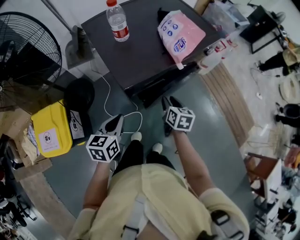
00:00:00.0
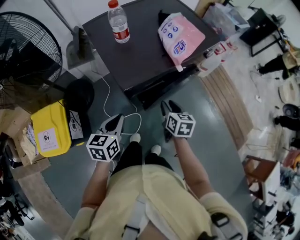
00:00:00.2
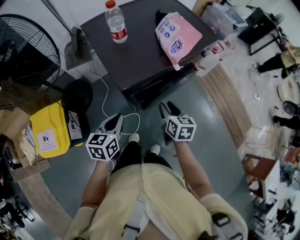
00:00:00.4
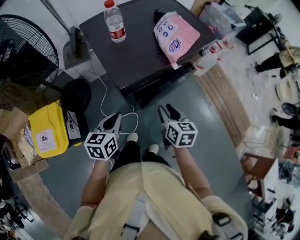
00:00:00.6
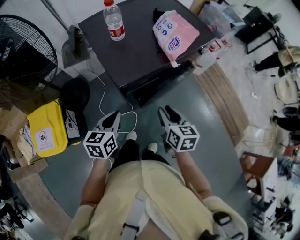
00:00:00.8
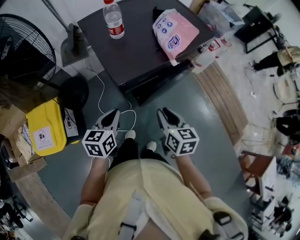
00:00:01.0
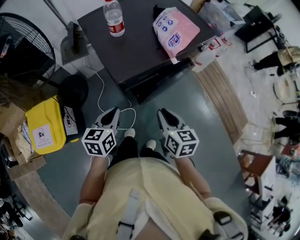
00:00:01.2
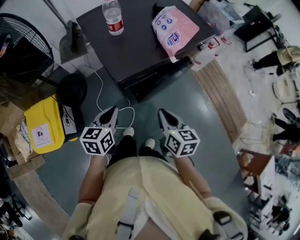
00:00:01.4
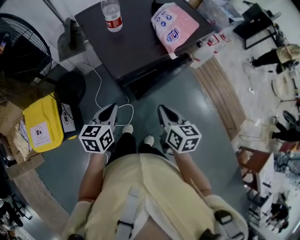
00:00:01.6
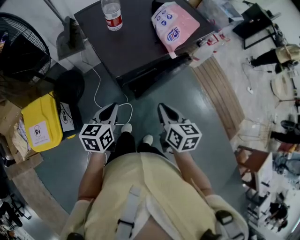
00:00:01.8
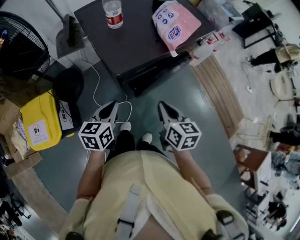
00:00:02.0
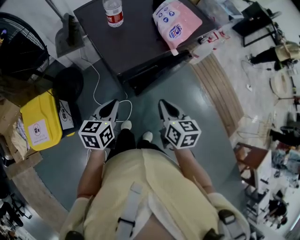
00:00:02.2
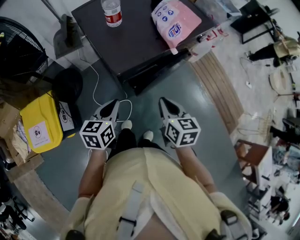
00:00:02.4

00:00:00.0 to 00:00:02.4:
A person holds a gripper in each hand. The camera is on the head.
00:00:00.0 to 00:00:01.2: The right gripper goes roughly 15 cm backward and upward.
00:00:01.2 to 00:00:02.4: The grippers make only small movements.

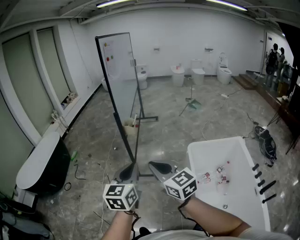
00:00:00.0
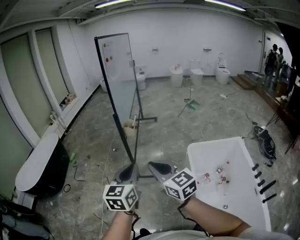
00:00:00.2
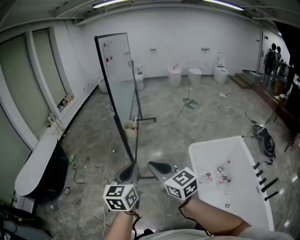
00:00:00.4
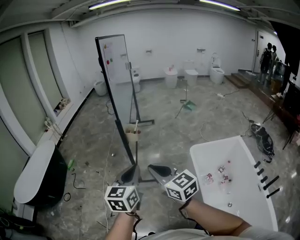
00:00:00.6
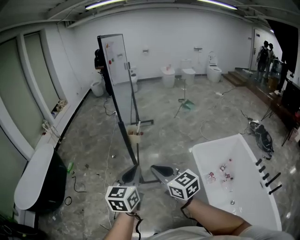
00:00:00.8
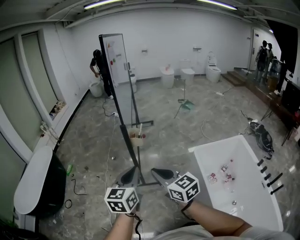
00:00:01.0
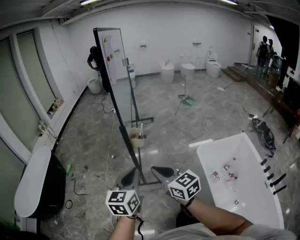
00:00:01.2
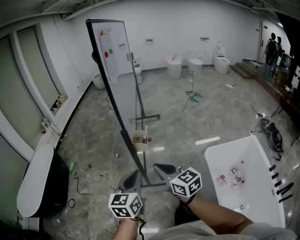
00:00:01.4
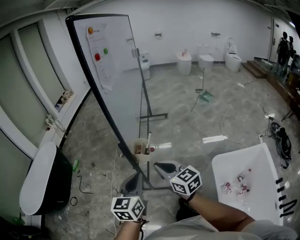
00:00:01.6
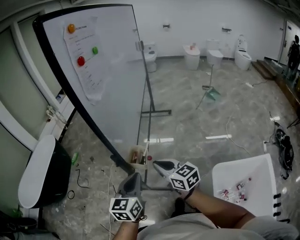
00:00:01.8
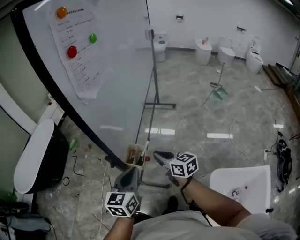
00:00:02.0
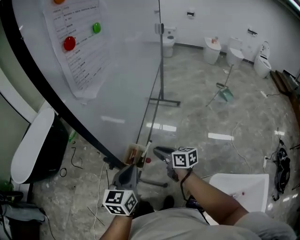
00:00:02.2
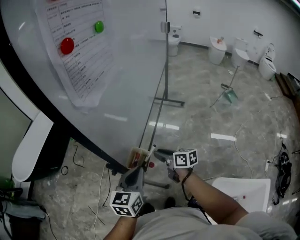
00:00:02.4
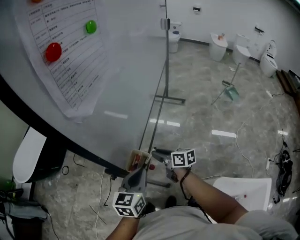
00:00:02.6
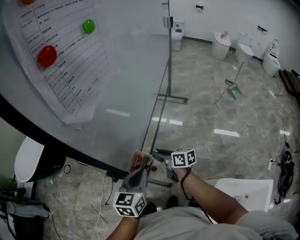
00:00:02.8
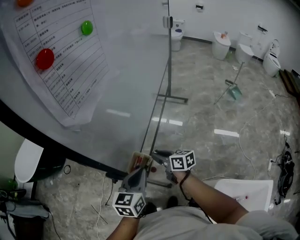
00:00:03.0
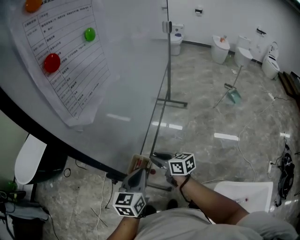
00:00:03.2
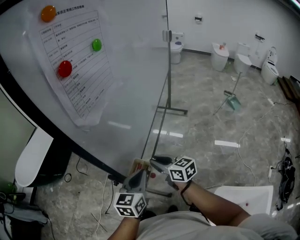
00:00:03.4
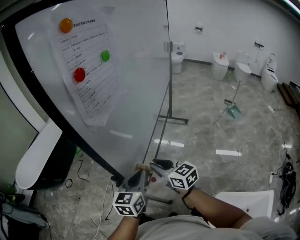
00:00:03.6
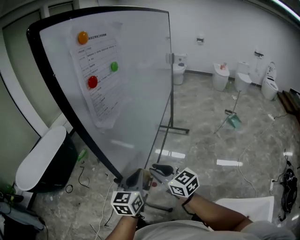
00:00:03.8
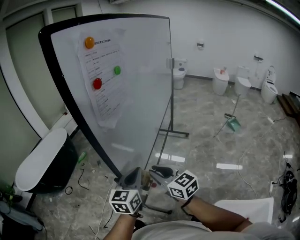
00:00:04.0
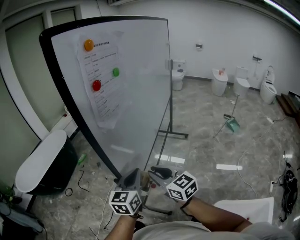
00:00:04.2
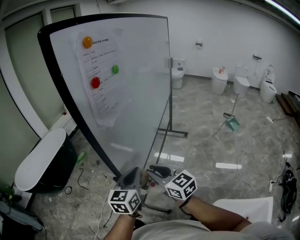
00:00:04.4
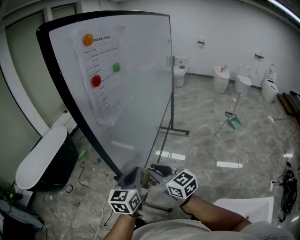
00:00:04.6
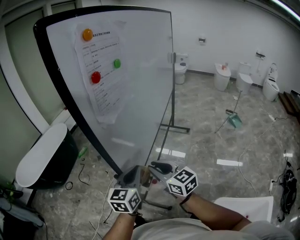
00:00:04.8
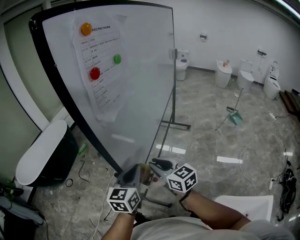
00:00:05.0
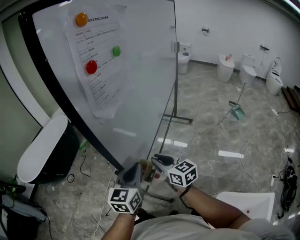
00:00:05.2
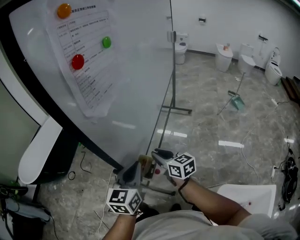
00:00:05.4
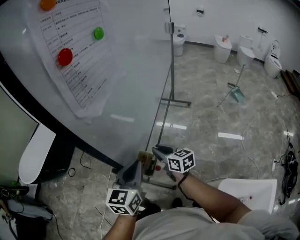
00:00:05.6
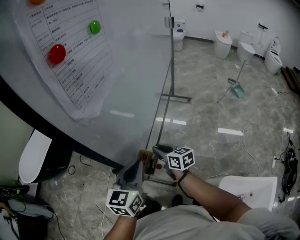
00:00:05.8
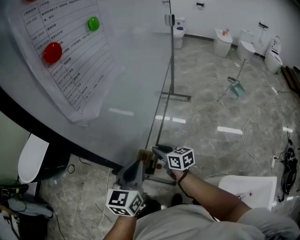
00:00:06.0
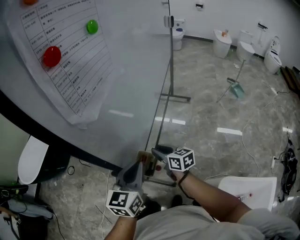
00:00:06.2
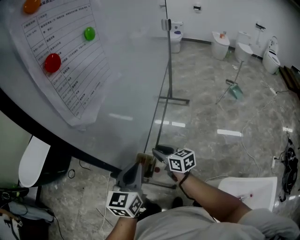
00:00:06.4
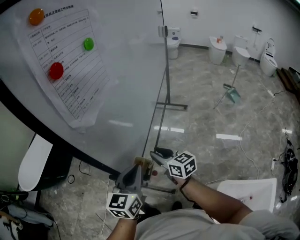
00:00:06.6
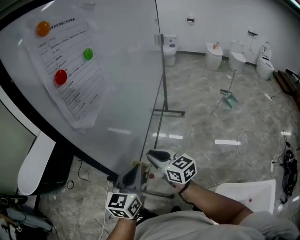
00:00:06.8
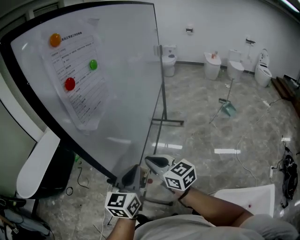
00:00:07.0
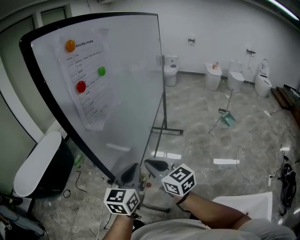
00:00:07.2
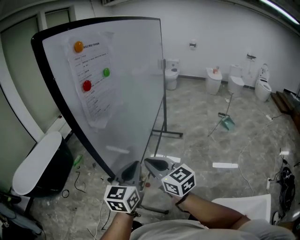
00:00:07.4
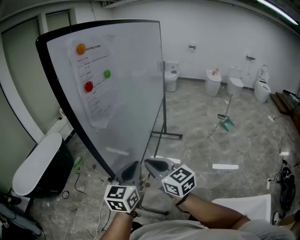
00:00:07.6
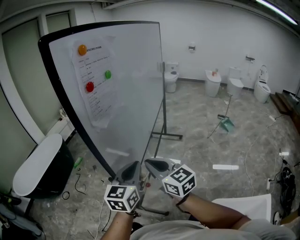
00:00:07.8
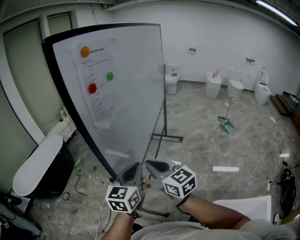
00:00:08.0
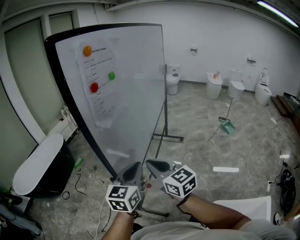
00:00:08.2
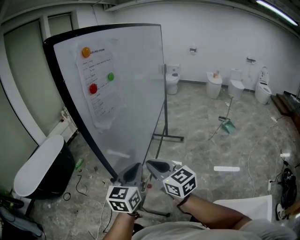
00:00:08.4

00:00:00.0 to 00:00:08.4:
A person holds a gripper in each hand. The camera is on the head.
00:00:00.0 to 00:00:01.4: Both grippers travel together forward, roughly 30 cm.
00:00:01.4 to 00:00:02.8: The right gripper shifts about 50 cm forward, downward and to the right, swivels some 50 degrees, and opens. Meanwhile the left gripper travels forward and to the right by about 35 cm, and rotates about 20 degrees.
00:00:02.8 to 00:00:04.2: The left gripper heads upward, covering roughly 10 cm, while the right gripper is displaced upward and backward by approximately 25 cm, and rolls counterclockwise, seen from behind, by roughly 40 degrees.
00:00:04.2 to 00:00:05.6: The right gripper travels downward and forward by roughly 15 cm, and turns by approximately 20 degrees.
00:00:05.6 to 00:00:07.0: The left gripper is displaced upward by approximately 5 cm. Meanwhile the right gripper goes roughly 15 cm upward and backward.
00:00:07.0 to 00:00:08.4: The right gripper is displaced upward by approximately 5 cm.

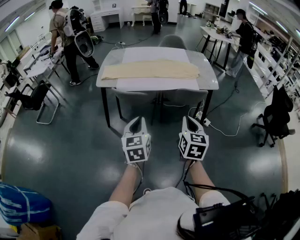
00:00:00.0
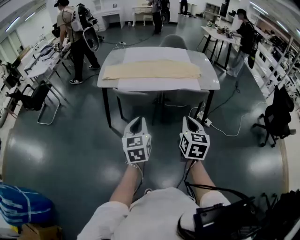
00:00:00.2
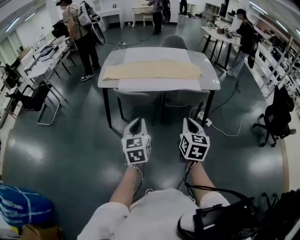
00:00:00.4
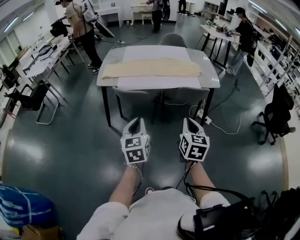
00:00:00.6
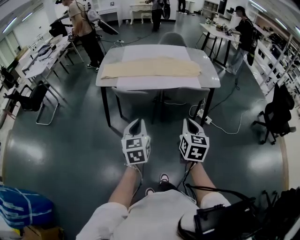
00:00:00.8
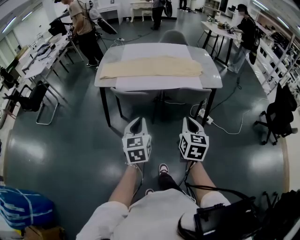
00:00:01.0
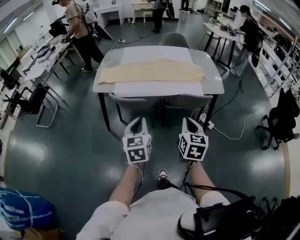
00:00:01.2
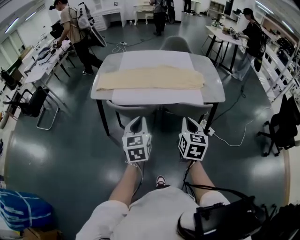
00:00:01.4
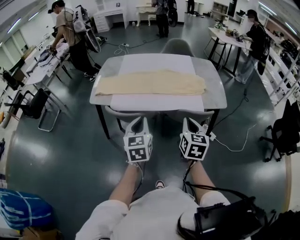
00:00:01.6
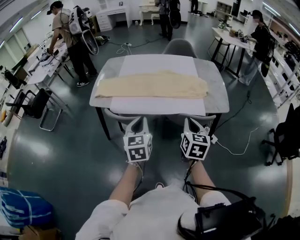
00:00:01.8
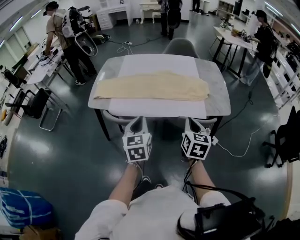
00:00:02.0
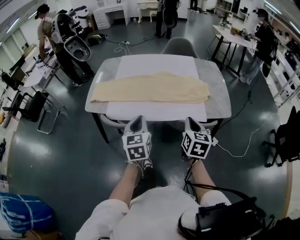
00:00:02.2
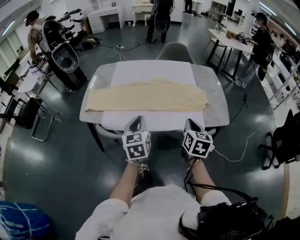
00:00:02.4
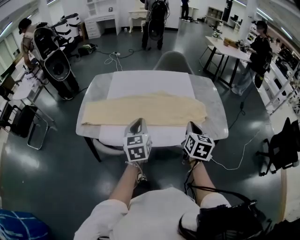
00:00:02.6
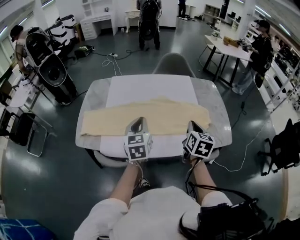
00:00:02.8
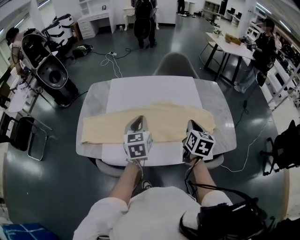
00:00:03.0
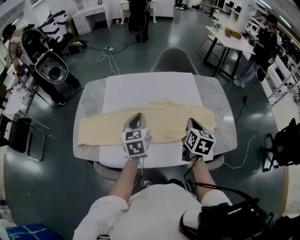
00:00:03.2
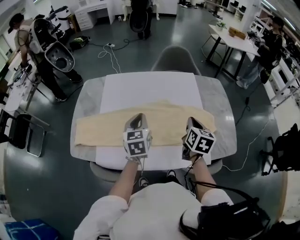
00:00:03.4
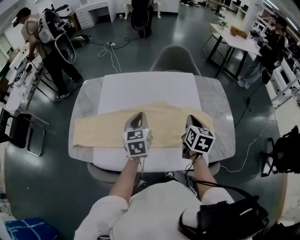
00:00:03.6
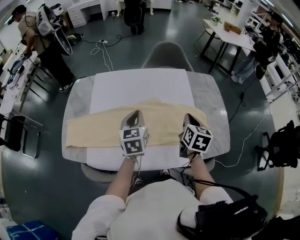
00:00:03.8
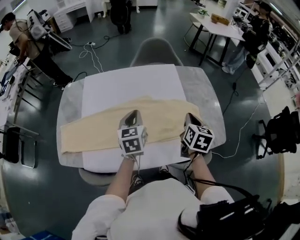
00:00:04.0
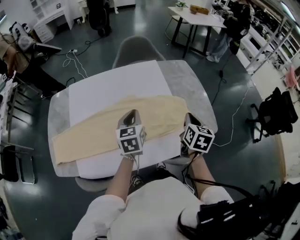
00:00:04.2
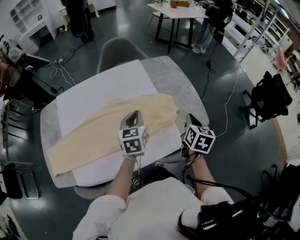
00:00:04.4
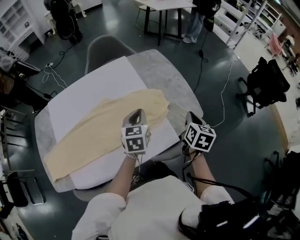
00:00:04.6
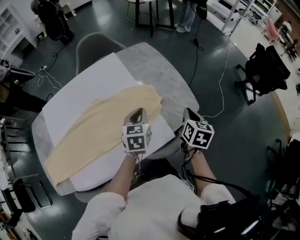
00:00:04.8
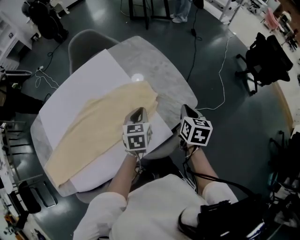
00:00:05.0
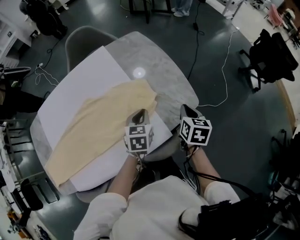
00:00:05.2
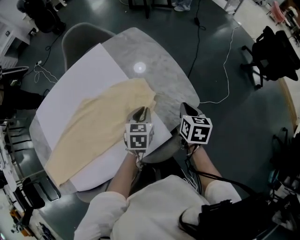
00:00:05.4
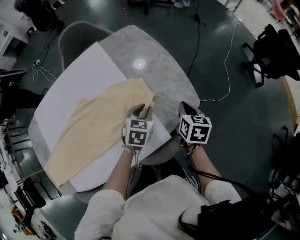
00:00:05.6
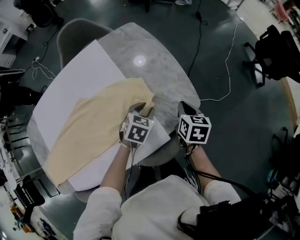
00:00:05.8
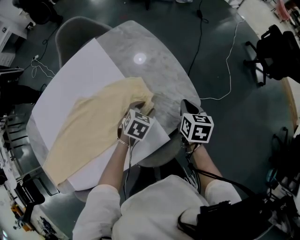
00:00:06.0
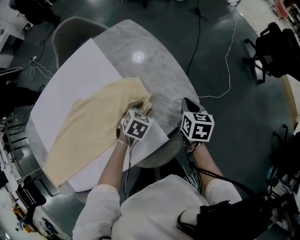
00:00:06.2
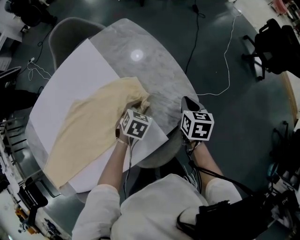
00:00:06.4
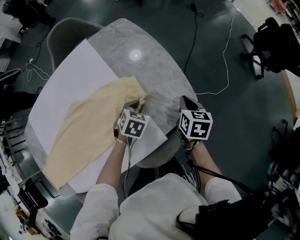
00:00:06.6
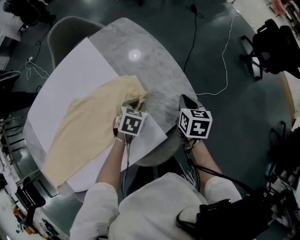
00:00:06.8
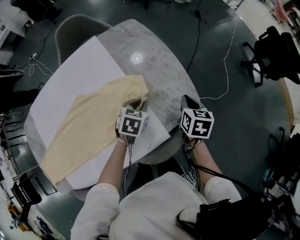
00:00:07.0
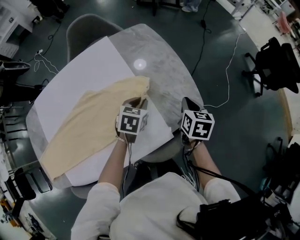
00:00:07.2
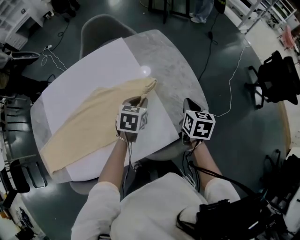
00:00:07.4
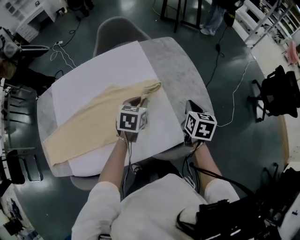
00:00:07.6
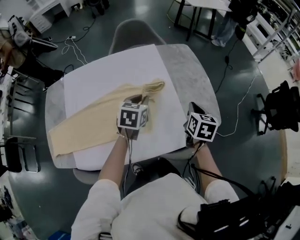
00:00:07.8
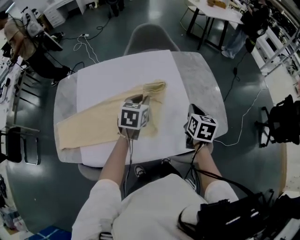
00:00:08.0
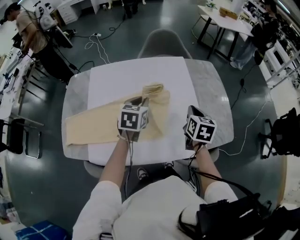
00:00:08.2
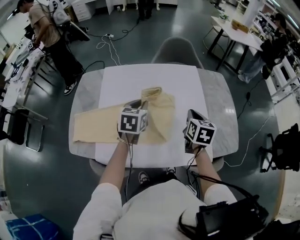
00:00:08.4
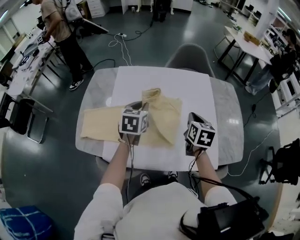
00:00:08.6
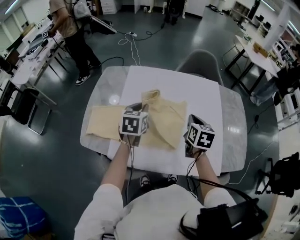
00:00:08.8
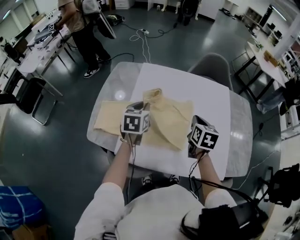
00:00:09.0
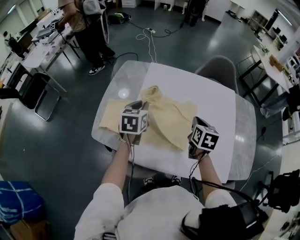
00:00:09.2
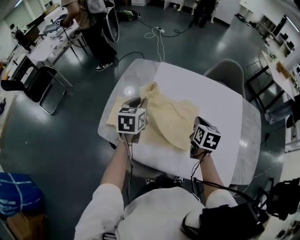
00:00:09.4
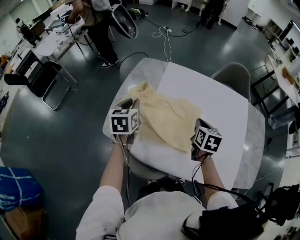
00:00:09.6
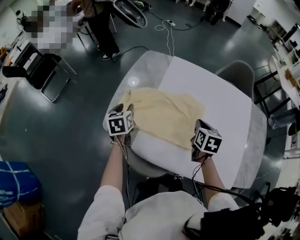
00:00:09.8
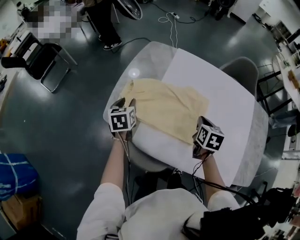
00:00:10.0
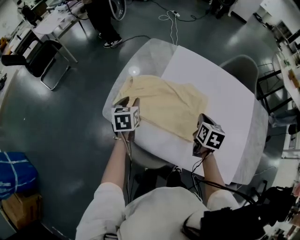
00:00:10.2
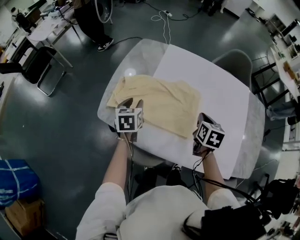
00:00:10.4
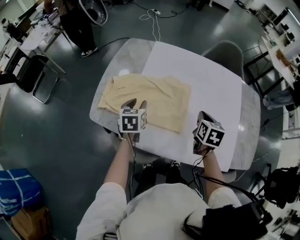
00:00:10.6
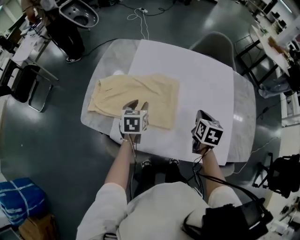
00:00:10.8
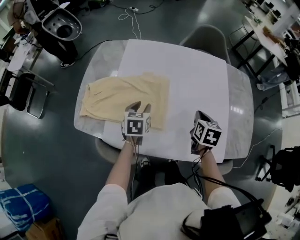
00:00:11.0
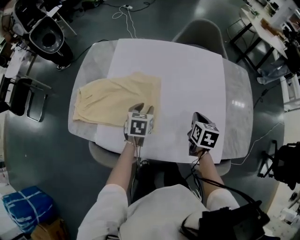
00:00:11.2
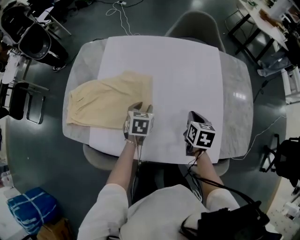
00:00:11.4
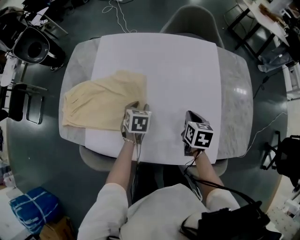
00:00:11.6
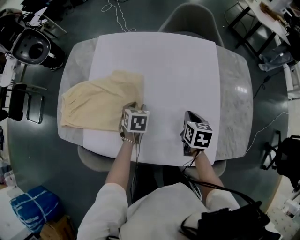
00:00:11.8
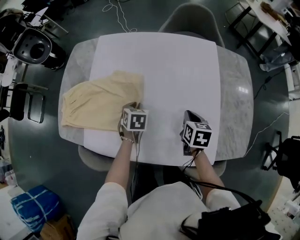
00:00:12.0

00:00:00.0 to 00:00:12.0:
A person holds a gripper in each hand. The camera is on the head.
00:00:00.0 to 00:00:01.6: The two grippers go approximately 25 cm forward.
00:00:01.6 to 00:00:03.0: Both grippers are carried forward, about 40 cm.
00:00:03.0 to 00:00:04.4: The left gripper heads to the right and forward, covering some 25 cm, and changes its angle by approximately 20 degrees; the right gripper shifts approximately 20 cm to the right, and changes its angle by roughly 20 degrees.
00:00:04.4 to 00:00:06.0: The left gripper moves to the right, downward and forward, some 35 cm, tips its fingers downward by some 30 degrees, and opens its fingers; the right gripper heads downward, to the right and forward, covering roughly 25 cm.
00:00:06.0 to 00:00:07.6: The grippers both shift to the left and upward by approximately 20 cm. The left gripper changes its angle by roughly 30 degrees, and closes.
00:00:07.6 to 00:00:09.0: The two grippers travel together, some 50 cm. The left gripper changes its angle by roughly 40 degrees; the right gripper rotates some 30 degrees.
00:00:09.0 to 00:00:10.4: The left gripper travels to the left and downward by about 20 cm, and opens up; the right gripper goes roughly 10 cm to the left and downward.
00:00:10.4 to 00:00:12.0: Both grippers travel together to the right, approximately 30 cm. The left gripper changes its angle by some 30 degrees, and closes.
